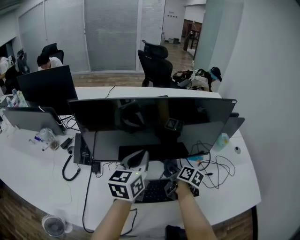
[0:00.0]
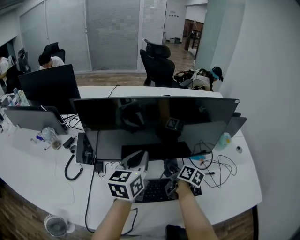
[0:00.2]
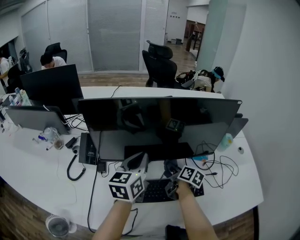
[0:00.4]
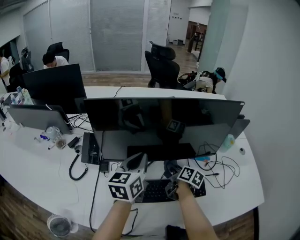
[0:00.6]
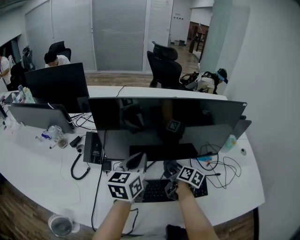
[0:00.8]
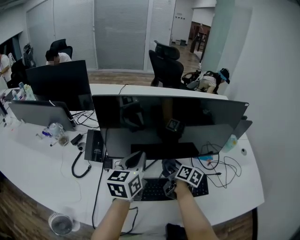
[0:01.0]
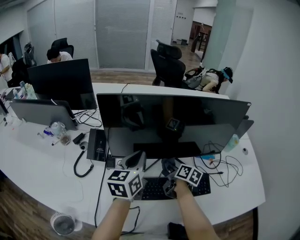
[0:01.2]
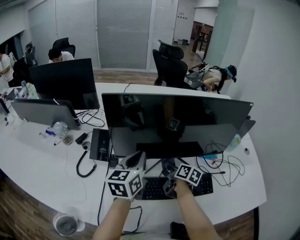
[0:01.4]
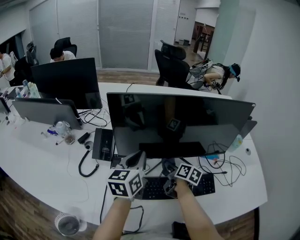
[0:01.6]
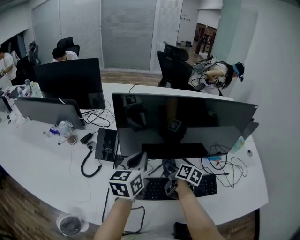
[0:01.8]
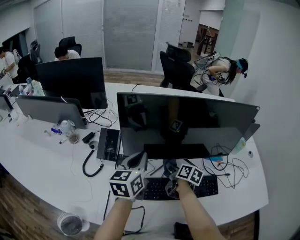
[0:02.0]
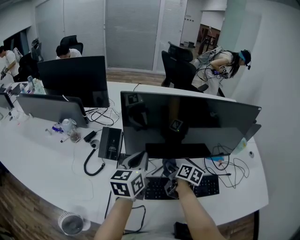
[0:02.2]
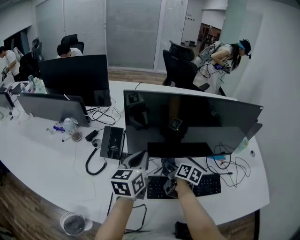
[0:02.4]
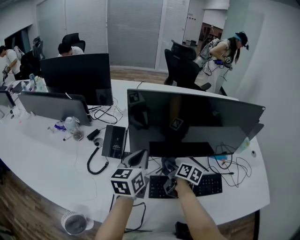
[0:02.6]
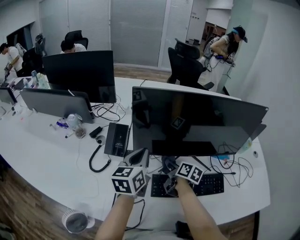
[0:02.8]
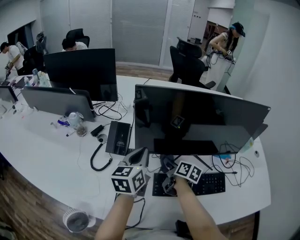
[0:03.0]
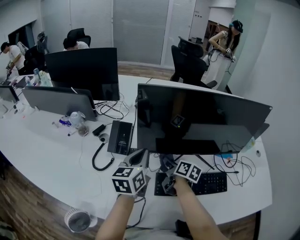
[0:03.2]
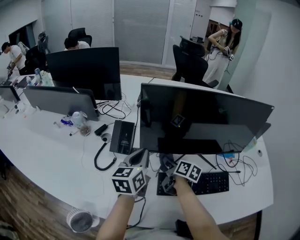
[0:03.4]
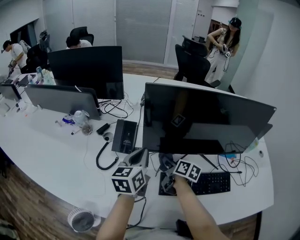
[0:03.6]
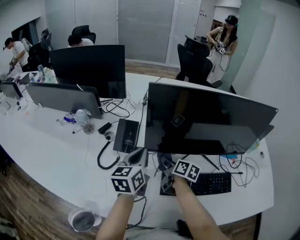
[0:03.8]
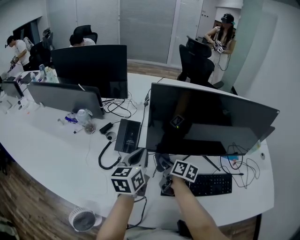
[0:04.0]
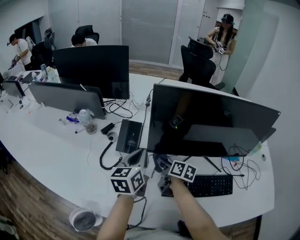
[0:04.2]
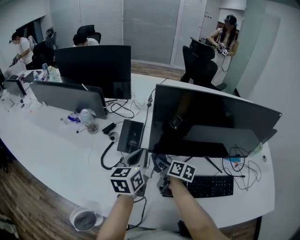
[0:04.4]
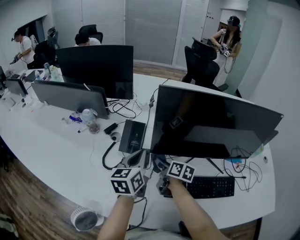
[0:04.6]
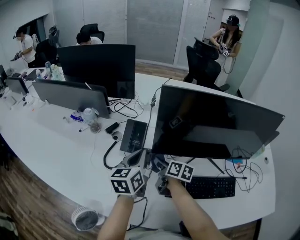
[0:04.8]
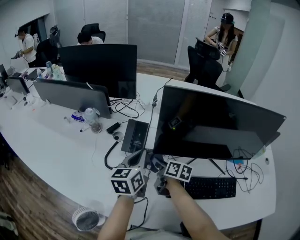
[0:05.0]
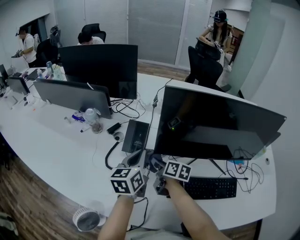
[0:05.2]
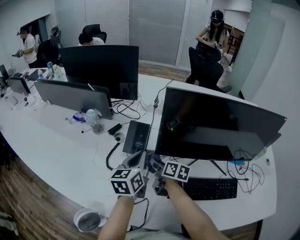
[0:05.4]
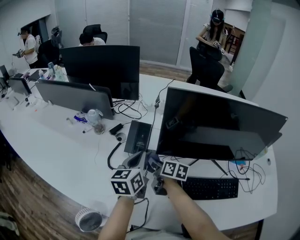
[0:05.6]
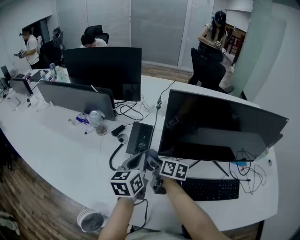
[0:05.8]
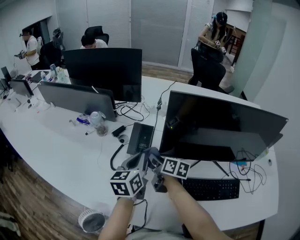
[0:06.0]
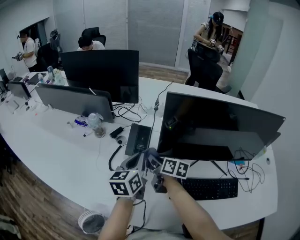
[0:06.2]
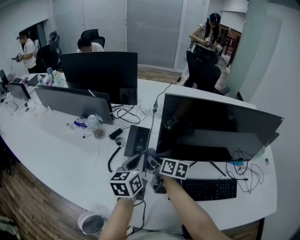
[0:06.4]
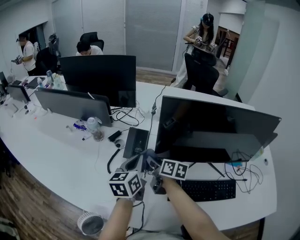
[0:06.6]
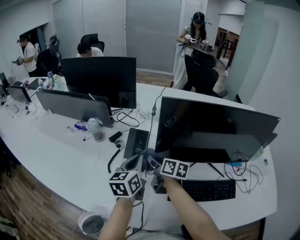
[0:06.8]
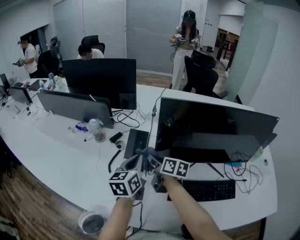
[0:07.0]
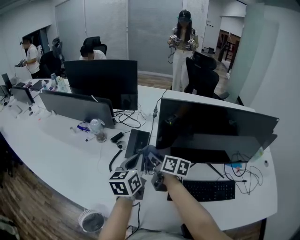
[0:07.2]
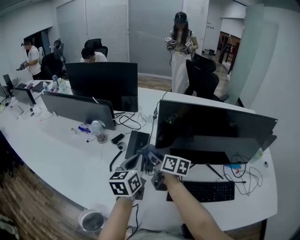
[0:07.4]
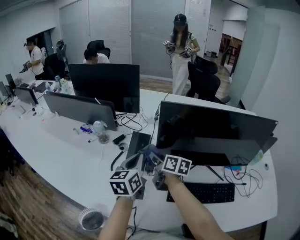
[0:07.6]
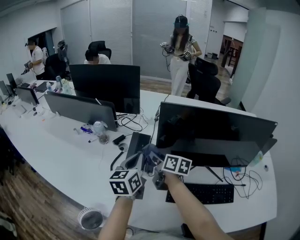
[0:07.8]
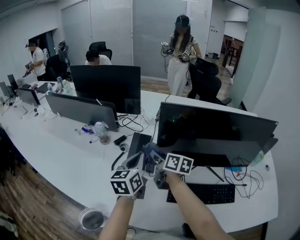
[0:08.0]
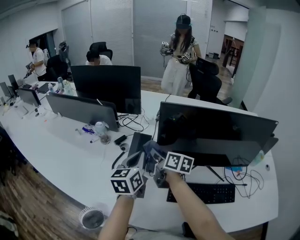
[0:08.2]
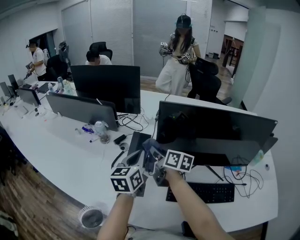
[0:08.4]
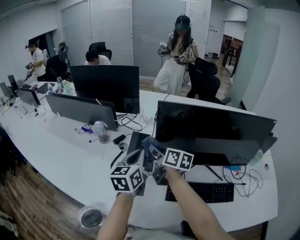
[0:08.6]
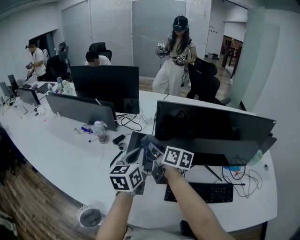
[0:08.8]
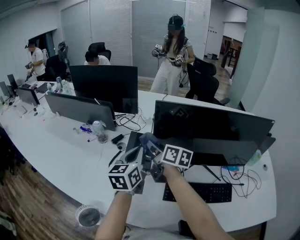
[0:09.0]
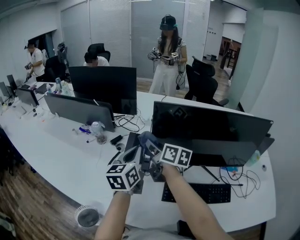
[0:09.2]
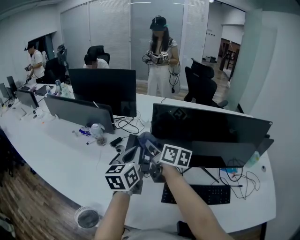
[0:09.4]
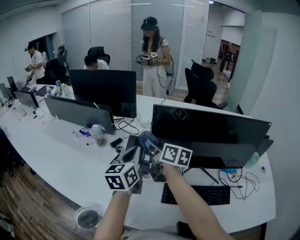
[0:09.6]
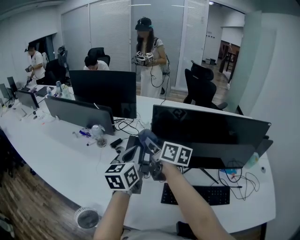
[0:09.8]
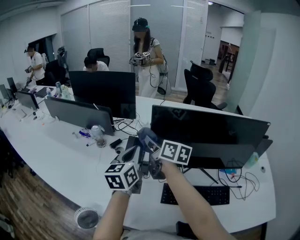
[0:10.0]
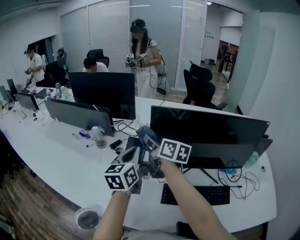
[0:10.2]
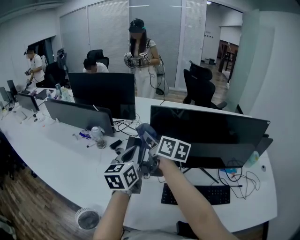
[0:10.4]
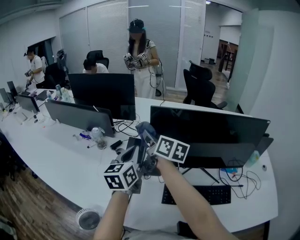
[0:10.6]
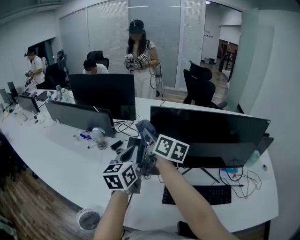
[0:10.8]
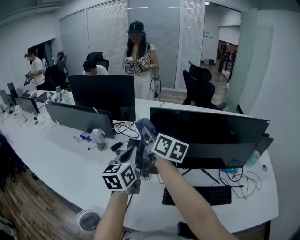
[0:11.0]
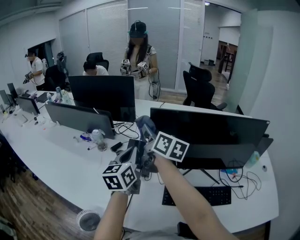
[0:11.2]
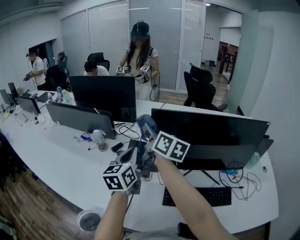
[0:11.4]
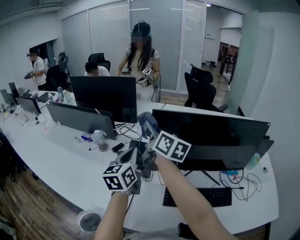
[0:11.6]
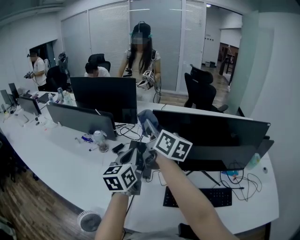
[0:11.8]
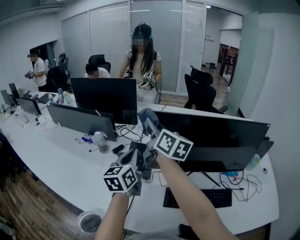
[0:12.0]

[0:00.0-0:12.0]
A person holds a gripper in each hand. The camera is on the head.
0:00.0 to 0:01.6: Both grippers travel together to the left, about 15 cm.
0:01.6 to 0:03.0: The two grippers go roughly 10 cm to the left.
0:03.0 to 0:04.4: The right gripper shifts roughly 10 cm to the left. The left gripper moves to the left, some 5 cm.
0:04.4 to 0:06.0: The right gripper moves to the left, roughly 10 cm. The left gripper travels to the left by roughly 5 cm.
0:06.0 to 0:07.6: The two grippers go some 5 cm upward.
0:07.6 to 0:09.0: The right gripper heads upward, covering about 10 cm.
0:09.0 to 0:10.4: The right gripper moves upward, some 5 cm.
0:10.4 to 0:12.0: The right gripper travels upward by approximately 10 cm.

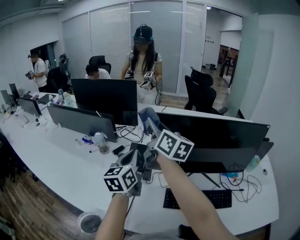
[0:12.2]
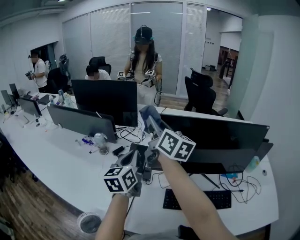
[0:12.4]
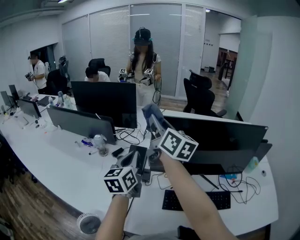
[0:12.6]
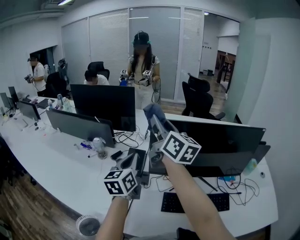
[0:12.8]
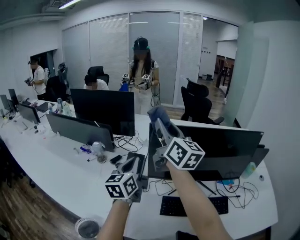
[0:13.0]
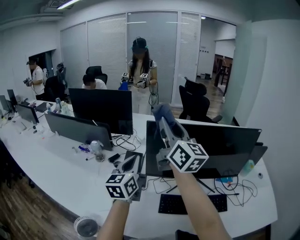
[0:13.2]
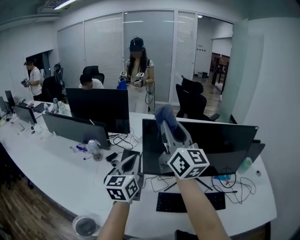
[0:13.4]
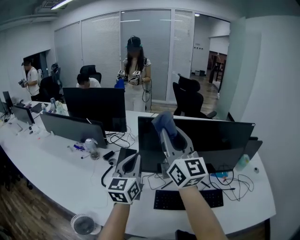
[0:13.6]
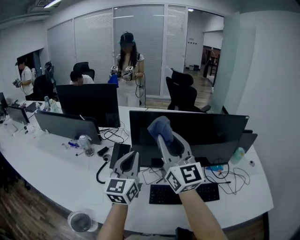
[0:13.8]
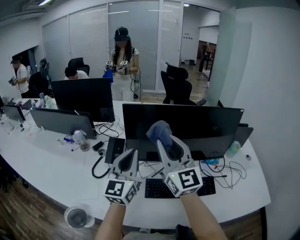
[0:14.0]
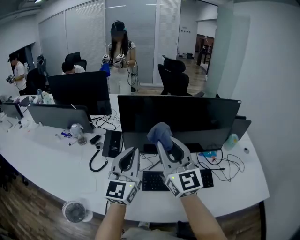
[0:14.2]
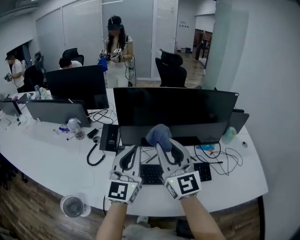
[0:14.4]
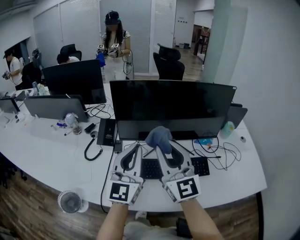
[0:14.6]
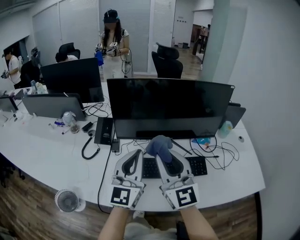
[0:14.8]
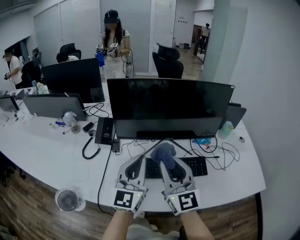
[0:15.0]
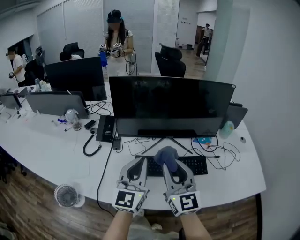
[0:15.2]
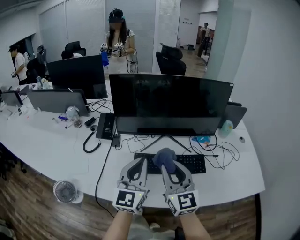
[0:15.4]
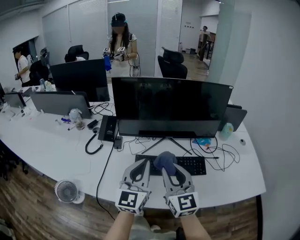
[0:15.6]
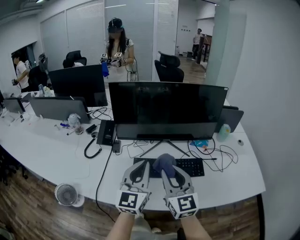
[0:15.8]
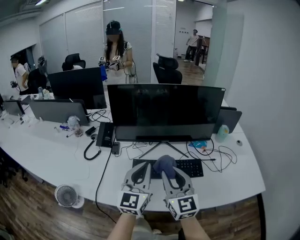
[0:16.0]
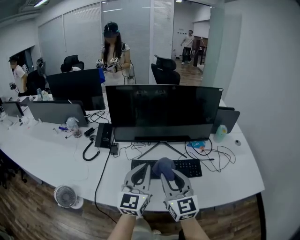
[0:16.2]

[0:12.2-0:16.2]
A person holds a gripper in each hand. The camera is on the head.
0:12.2 to 0:13.6: The right gripper is displaced backward, to the right and upward by roughly 15 cm, and swivels roughly 40 degrees. Meanwhile the left gripper heads to the right, covering approximately 5 cm.
0:13.6 to 0:14.8: The right gripper goes roughly 25 cm backward, downward and to the right, and turns by roughly 20 degrees, while the left gripper moves backward and to the right, some 20 cm.
0:14.8 to 0:16.2: The left gripper heads to the right and backward, covering roughly 10 cm; the right gripper shifts approximately 10 cm downward, backward and to the right.

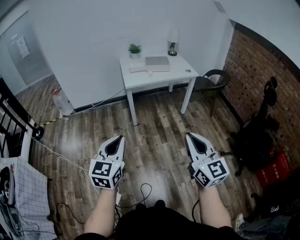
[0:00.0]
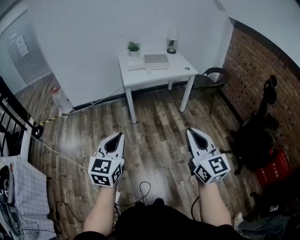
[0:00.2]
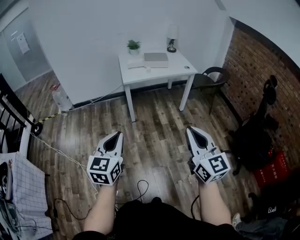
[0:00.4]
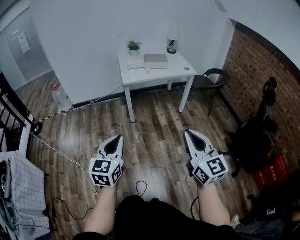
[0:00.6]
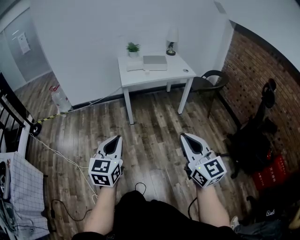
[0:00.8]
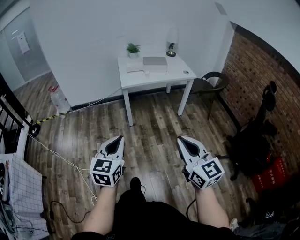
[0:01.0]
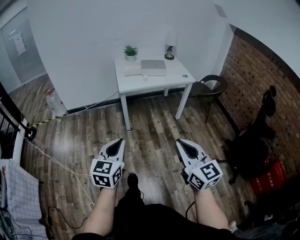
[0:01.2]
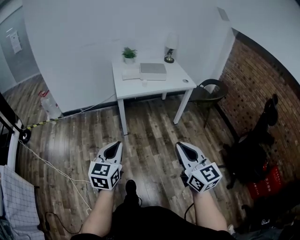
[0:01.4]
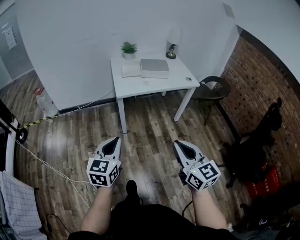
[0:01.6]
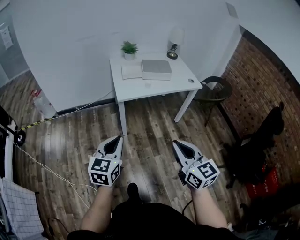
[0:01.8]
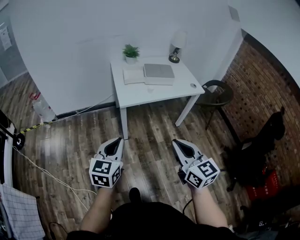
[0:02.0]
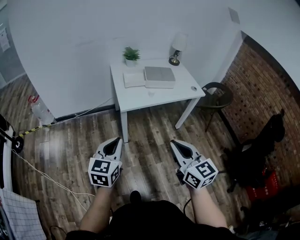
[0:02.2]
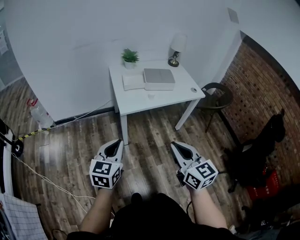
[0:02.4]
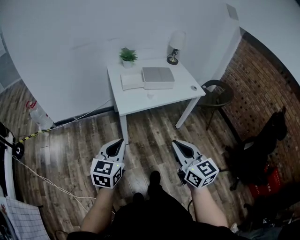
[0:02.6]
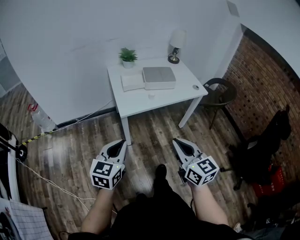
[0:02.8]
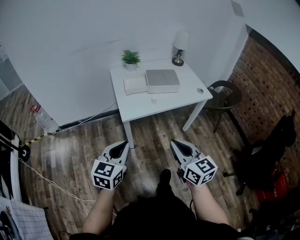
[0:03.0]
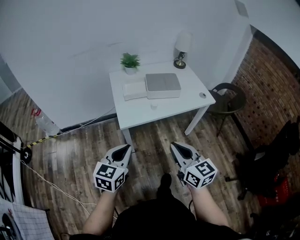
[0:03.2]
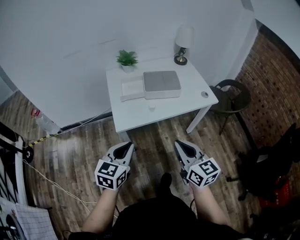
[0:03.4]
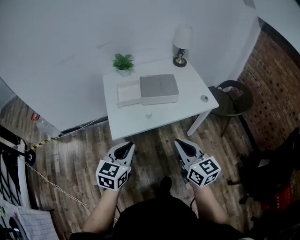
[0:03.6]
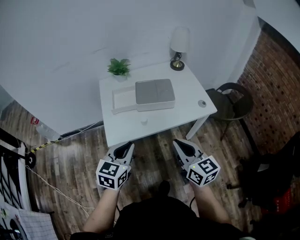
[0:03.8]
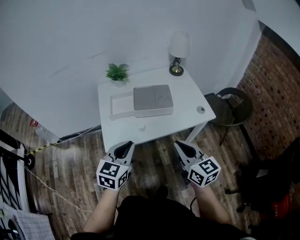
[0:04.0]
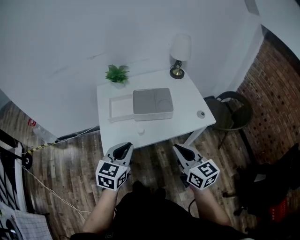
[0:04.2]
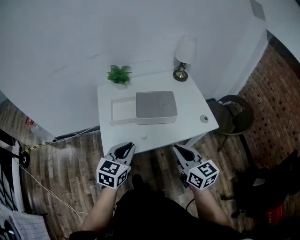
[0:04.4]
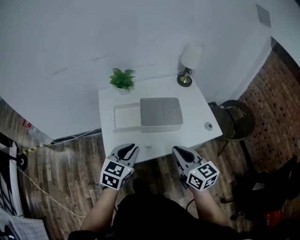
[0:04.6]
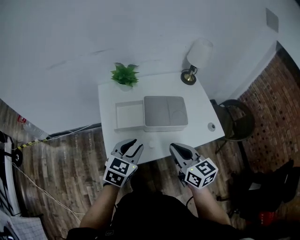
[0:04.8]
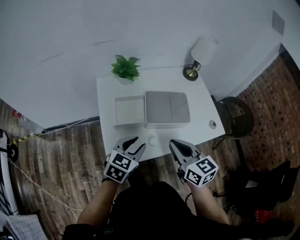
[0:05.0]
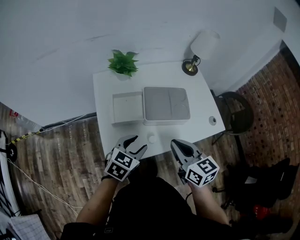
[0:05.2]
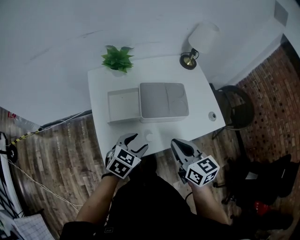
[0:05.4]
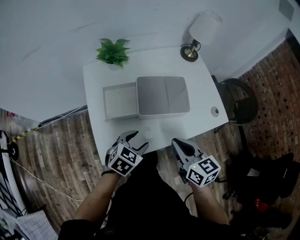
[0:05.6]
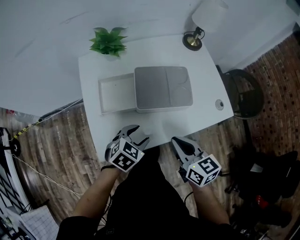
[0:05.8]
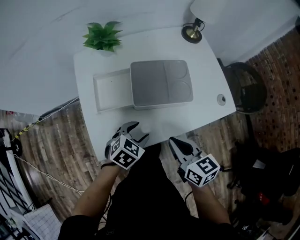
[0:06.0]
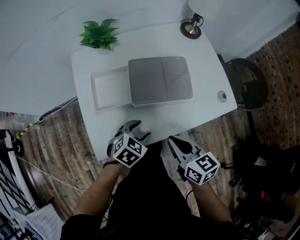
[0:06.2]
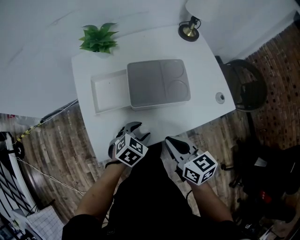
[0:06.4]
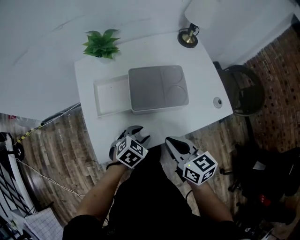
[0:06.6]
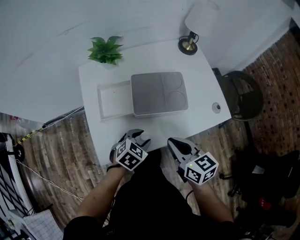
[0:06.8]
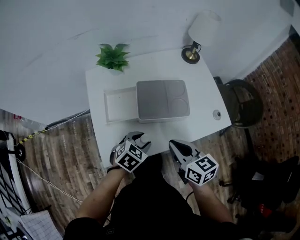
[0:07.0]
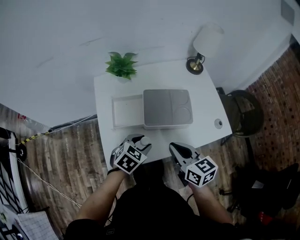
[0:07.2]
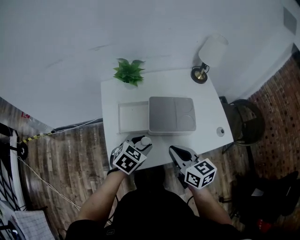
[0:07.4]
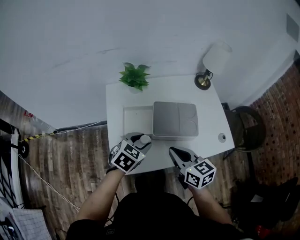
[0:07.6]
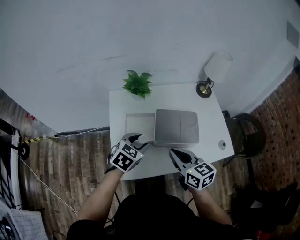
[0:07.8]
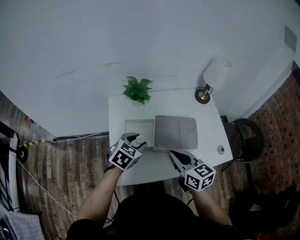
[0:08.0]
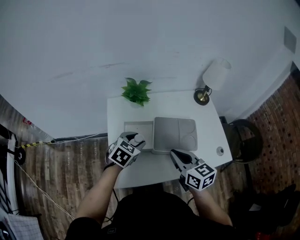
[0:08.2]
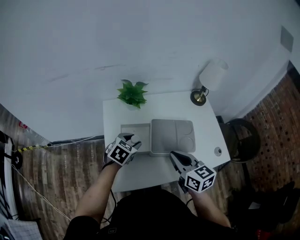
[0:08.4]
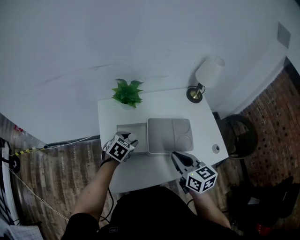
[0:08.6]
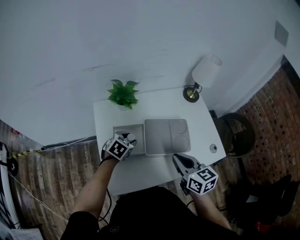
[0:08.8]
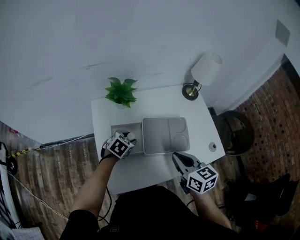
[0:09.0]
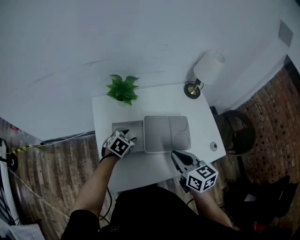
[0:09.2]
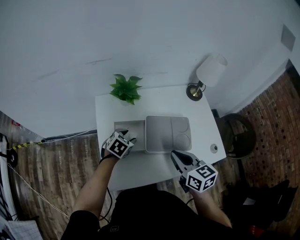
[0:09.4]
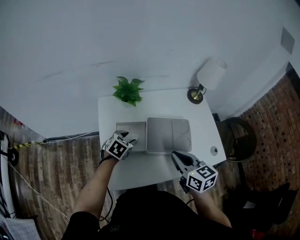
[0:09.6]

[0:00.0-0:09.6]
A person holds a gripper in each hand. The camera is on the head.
0:00.0 to 0:01.6: The grippers both shift forward by roughly 25 cm.
0:01.6 to 0:03.2: Both grippers travel together forward, about 25 cm.
0:03.2 to 0:04.8: Both grippers travel together forward, approximately 35 cm.
0:04.8 to 0:06.4: The left gripper moves downward, some 20 cm, changes its angle by approximately 30 degrees, and opens up; the right gripper shifts roughly 15 cm downward.
0:06.4 to 0:08.0: The left gripper travels upward, to the left and forward by approximately 20 cm, while the right gripper is displaced upward, forward and to the left by roughly 15 cm.
0:08.0 to 0:09.6: The left gripper heads downward and forward, covering some 10 cm.
